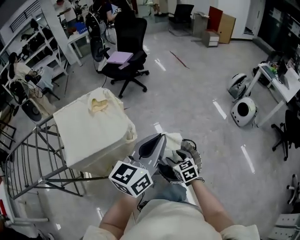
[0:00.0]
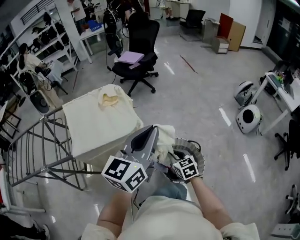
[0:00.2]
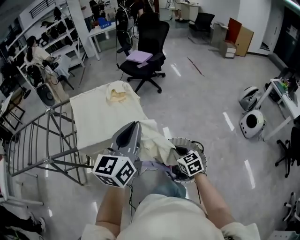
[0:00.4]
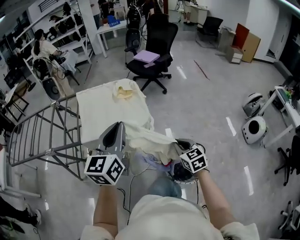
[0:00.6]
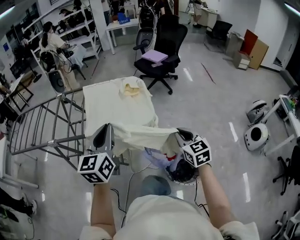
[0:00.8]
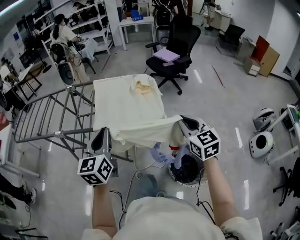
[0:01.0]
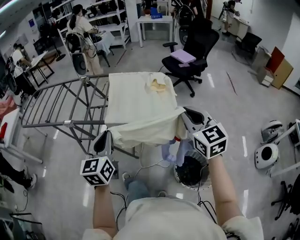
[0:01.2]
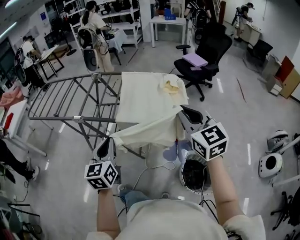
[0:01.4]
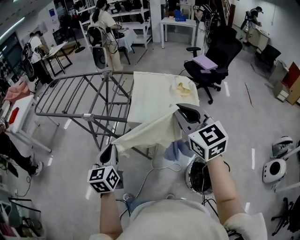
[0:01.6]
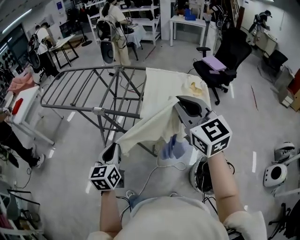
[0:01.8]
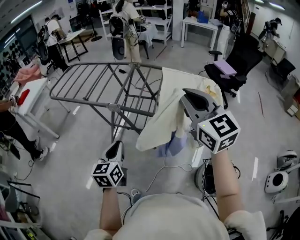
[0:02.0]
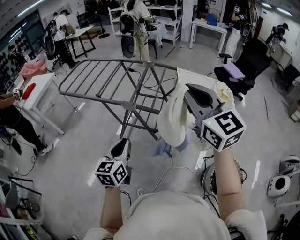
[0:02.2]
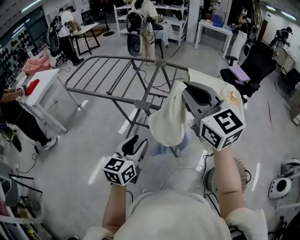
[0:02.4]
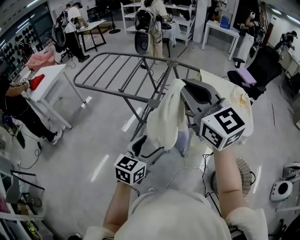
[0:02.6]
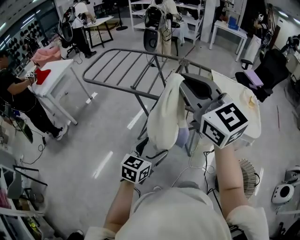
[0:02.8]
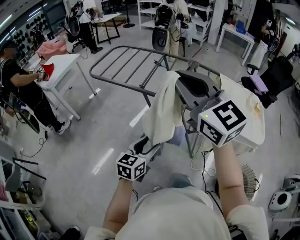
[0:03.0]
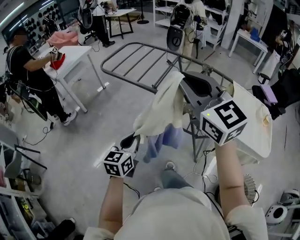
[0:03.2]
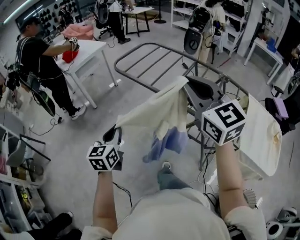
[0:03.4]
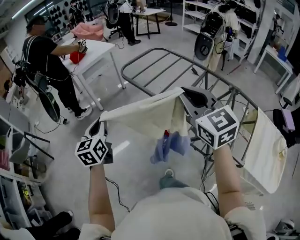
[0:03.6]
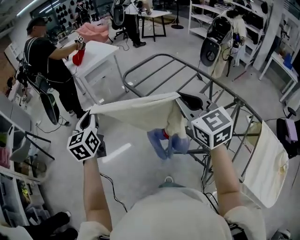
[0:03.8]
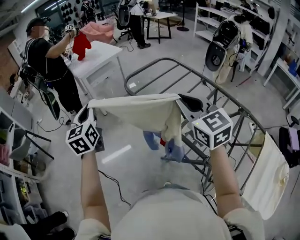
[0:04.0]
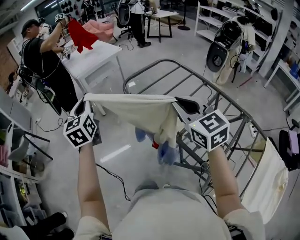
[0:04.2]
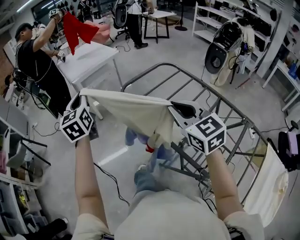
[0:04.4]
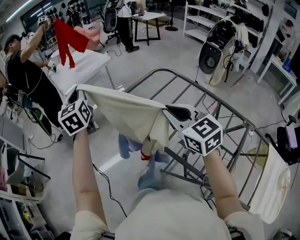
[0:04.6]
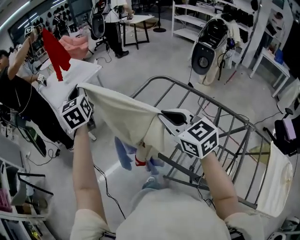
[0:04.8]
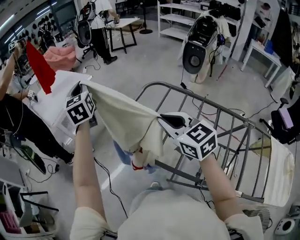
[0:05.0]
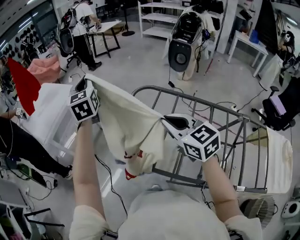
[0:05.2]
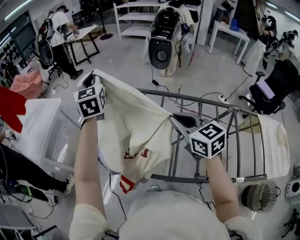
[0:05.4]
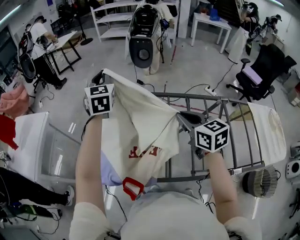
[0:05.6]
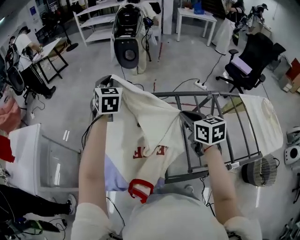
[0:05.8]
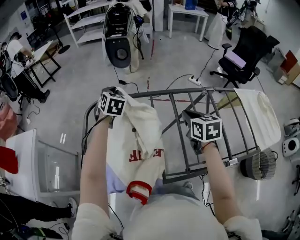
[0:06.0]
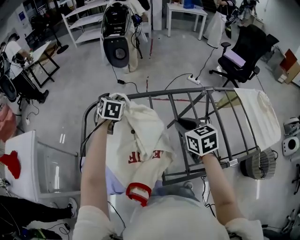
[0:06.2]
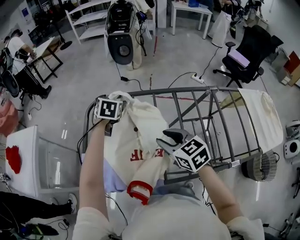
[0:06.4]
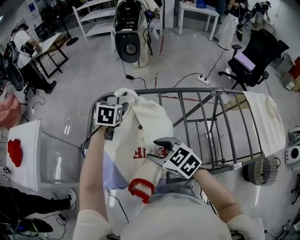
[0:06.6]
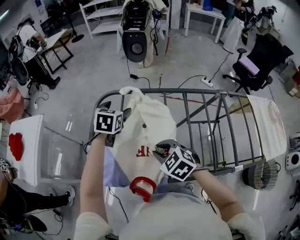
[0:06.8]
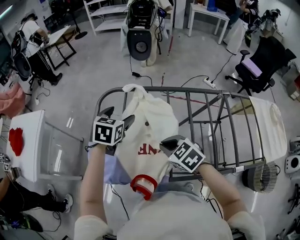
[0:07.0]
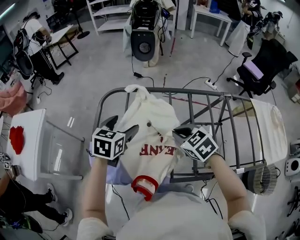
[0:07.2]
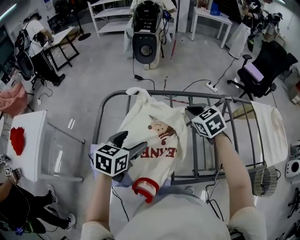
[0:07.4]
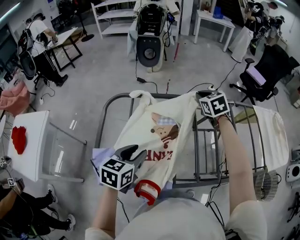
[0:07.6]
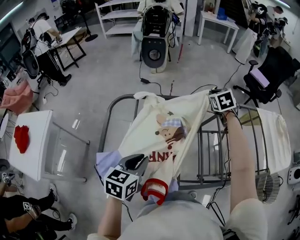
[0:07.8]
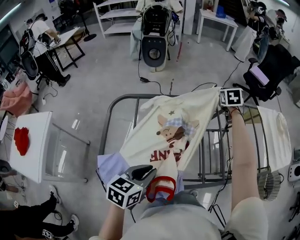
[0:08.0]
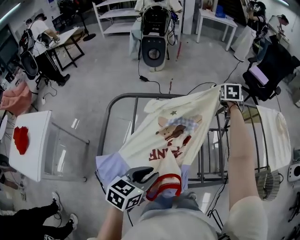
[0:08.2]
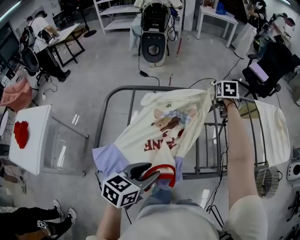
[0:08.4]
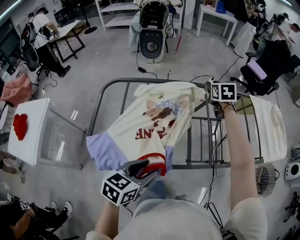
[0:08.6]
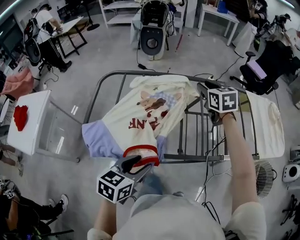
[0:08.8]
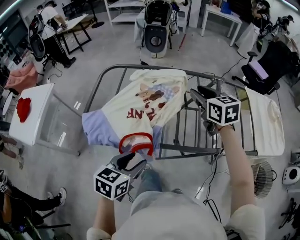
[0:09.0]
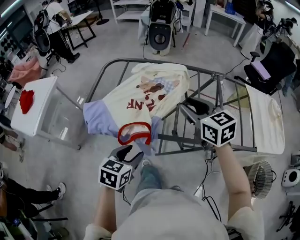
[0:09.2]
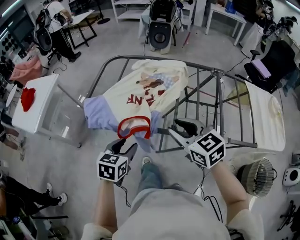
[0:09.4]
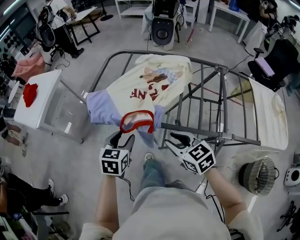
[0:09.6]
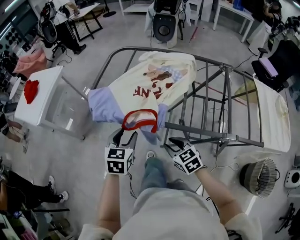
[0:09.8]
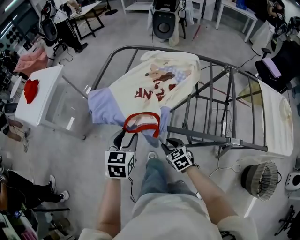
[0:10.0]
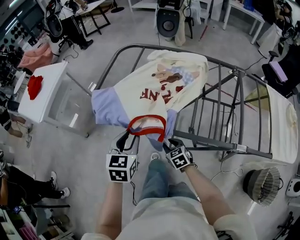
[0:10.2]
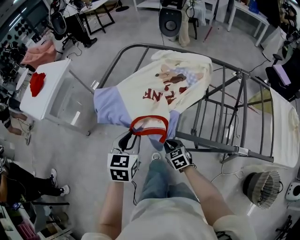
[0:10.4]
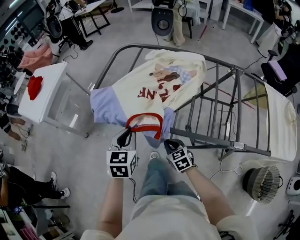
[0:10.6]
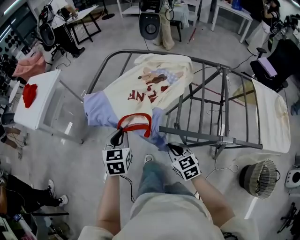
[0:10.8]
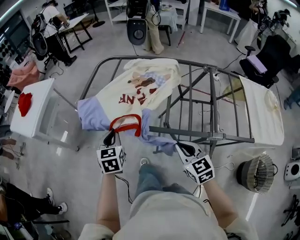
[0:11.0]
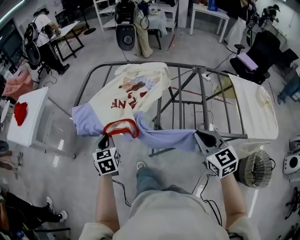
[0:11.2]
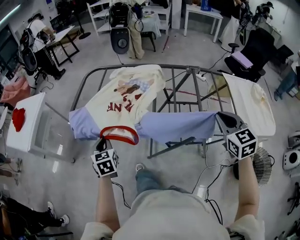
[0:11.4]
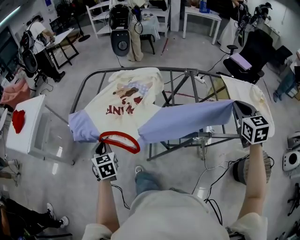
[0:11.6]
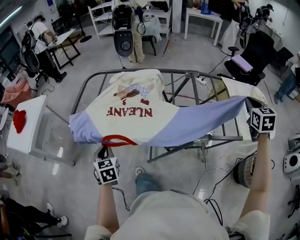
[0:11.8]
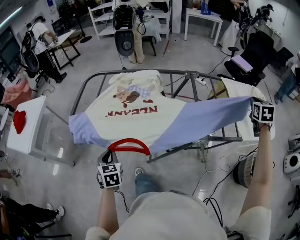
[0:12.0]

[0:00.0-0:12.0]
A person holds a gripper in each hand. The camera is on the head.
0:00.0 to 0:01.6: The right gripper goes about 35 cm upward, points its fingers some 30 degrees further upward, and closes, while the left gripper changes place by some 50 cm, and swivels some 70 degrees.
0:01.6 to 0:03.0: The right gripper shifts roughly 50 cm to the left, and changes its angle by roughly 30 degrees. The left gripper travels to the left by roughly 30 cm, and opens its fingers.
0:03.0 to 0:04.4: The left gripper changes place by some 60 cm, turns by roughly 70 degrees, and closes. Meanwhile the right gripper ends up roughly 40 cm from where it was, and rotates about 30 degrees.
0:04.4 to 0:06.0: The right gripper changes place by some 30 cm, and swivels some 80 degrees; the left gripper changes place by approximately 60 cm, and swivels approximately 80 degrees.
0:06.0 to 0:07.6: The right gripper moves roughly 5 cm downward and comes back, swivels approximately 30 degrees, and opens, then closes once more, while the left gripper changes place by about 25 cm, swivels roughly 40 degrees, and opens.
0:07.6 to 0:09.0: The left gripper shifts by roughly 25 cm; the right gripper moves about 20 cm, rotates approximately 20 degrees, and opens up.
0:09.0 to 0:10.4: The right gripper goes approximately 35 cm downward, and rotates about 30 degrees. Meanwhile the left gripper changes place by some 10 cm, and changes its angle by roughly 30 degrees.
0:10.4 to 0:12.0: The right gripper moves approximately 70 cm, and turns by about 60 degrees.

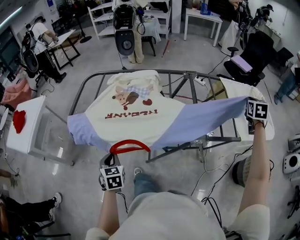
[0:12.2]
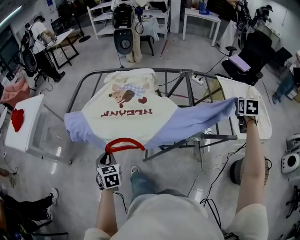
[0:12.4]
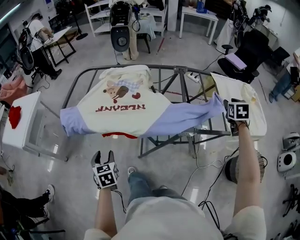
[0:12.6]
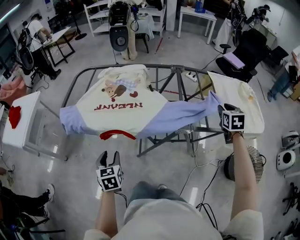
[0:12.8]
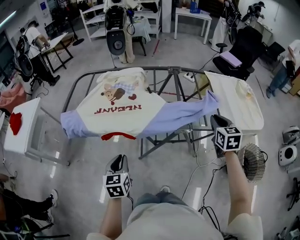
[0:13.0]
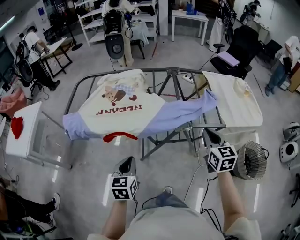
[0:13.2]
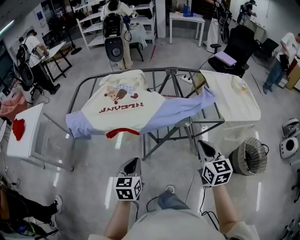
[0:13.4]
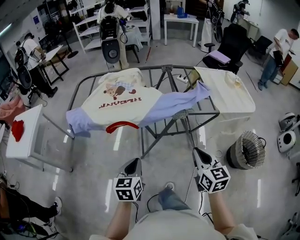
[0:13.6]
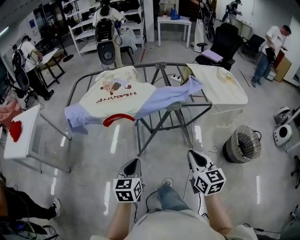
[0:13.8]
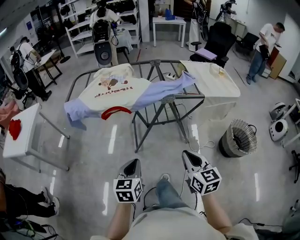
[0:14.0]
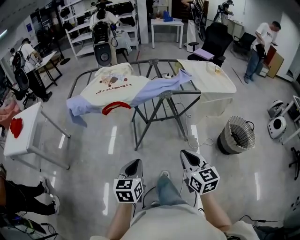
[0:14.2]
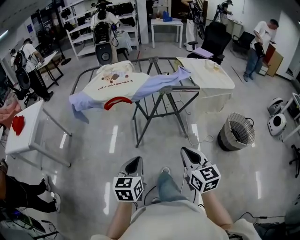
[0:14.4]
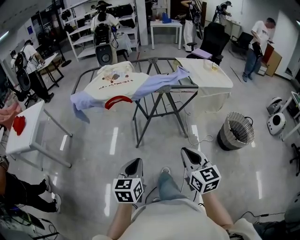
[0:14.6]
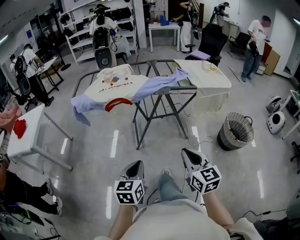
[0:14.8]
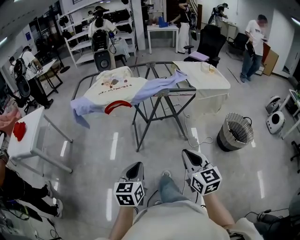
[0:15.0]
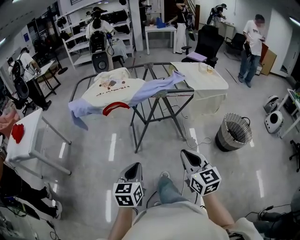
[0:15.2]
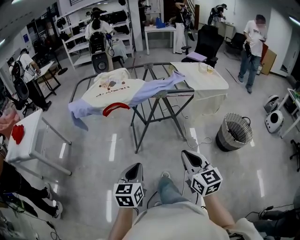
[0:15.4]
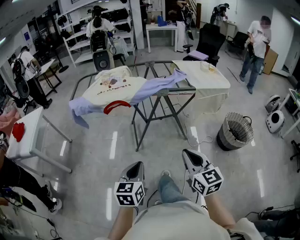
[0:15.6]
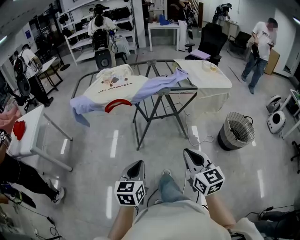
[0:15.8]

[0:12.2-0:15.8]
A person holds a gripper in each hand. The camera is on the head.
0:12.2 to 0:14.0: The right gripper travels backward and to the left by about 60 cm, turns by roughly 40 degrees, and opens and closes again; the left gripper shifts some 35 cm backward and to the right, rotates some 30 degrees, and opens, then closes once more.
0:14.0 to 0:15.8: The grippers both shift backward by roughly 10 cm.

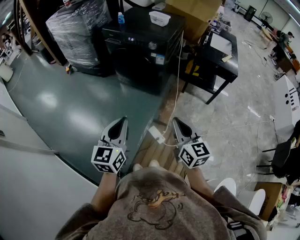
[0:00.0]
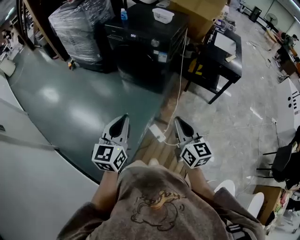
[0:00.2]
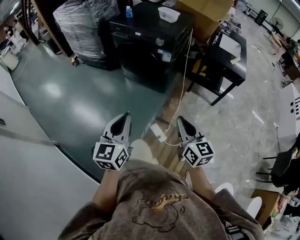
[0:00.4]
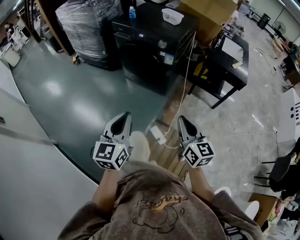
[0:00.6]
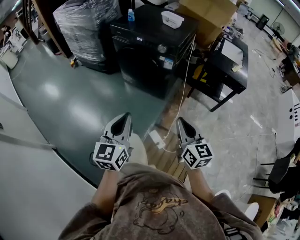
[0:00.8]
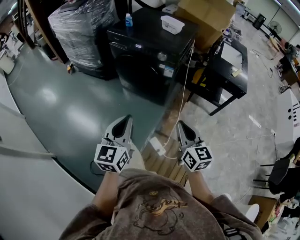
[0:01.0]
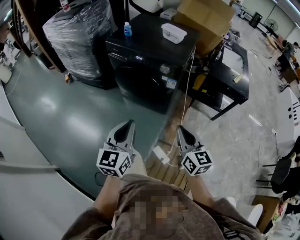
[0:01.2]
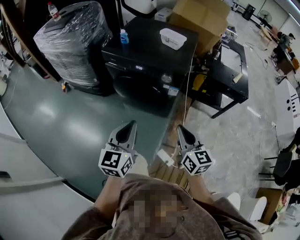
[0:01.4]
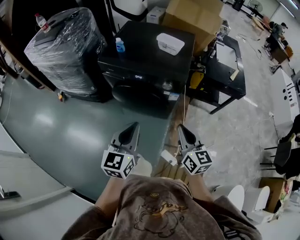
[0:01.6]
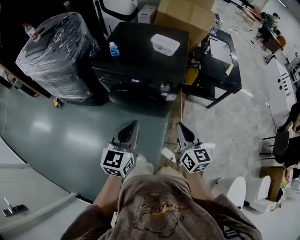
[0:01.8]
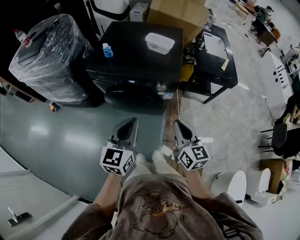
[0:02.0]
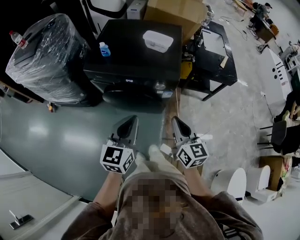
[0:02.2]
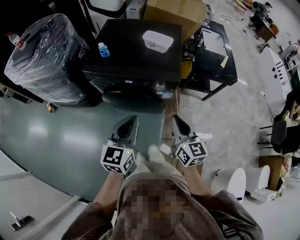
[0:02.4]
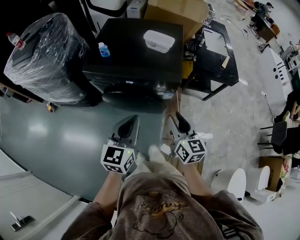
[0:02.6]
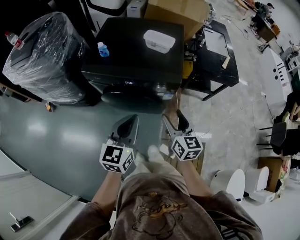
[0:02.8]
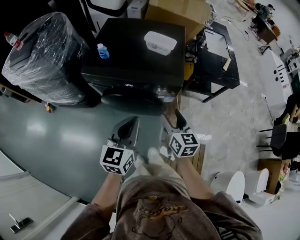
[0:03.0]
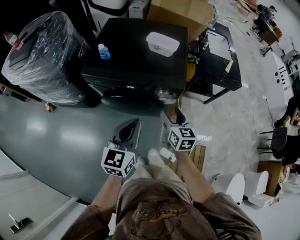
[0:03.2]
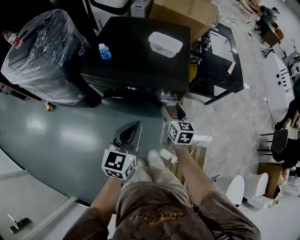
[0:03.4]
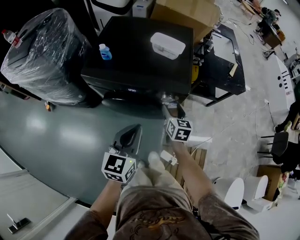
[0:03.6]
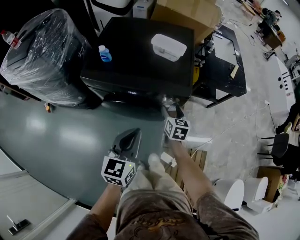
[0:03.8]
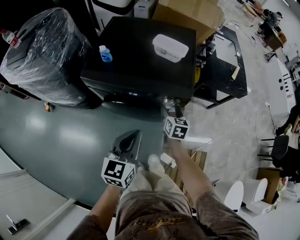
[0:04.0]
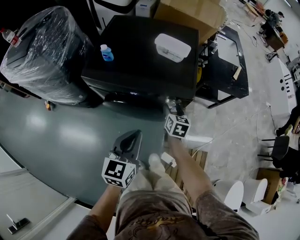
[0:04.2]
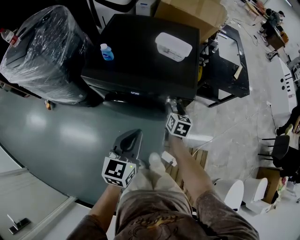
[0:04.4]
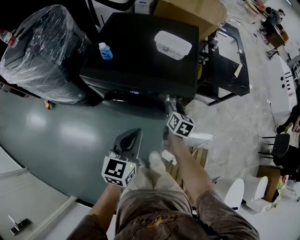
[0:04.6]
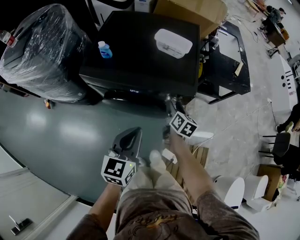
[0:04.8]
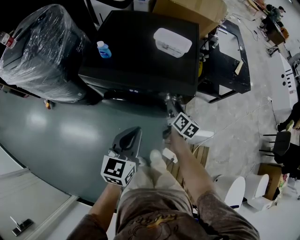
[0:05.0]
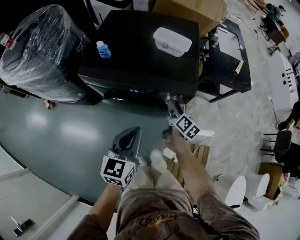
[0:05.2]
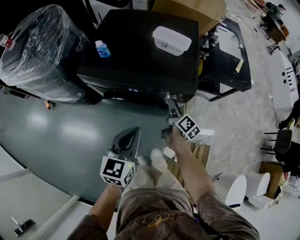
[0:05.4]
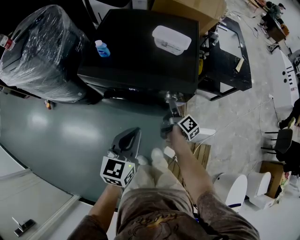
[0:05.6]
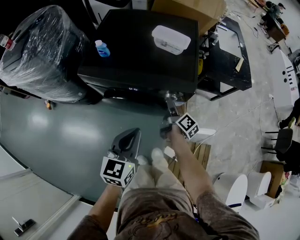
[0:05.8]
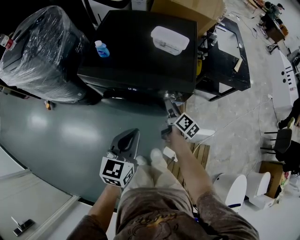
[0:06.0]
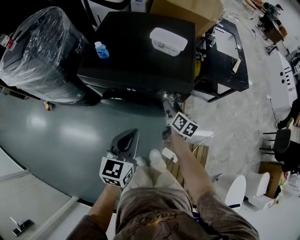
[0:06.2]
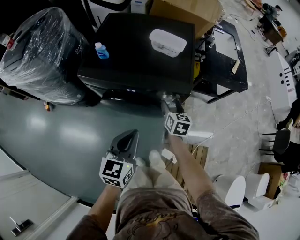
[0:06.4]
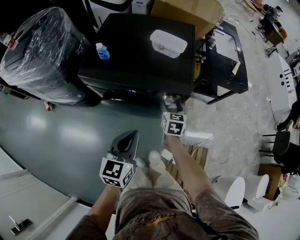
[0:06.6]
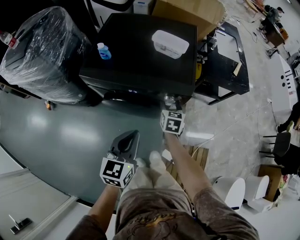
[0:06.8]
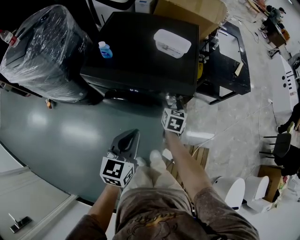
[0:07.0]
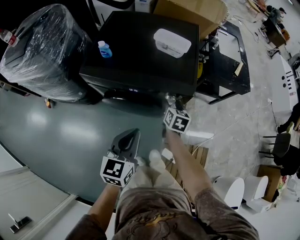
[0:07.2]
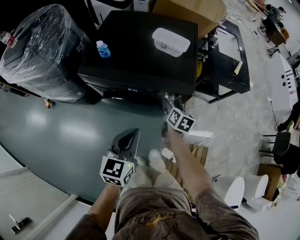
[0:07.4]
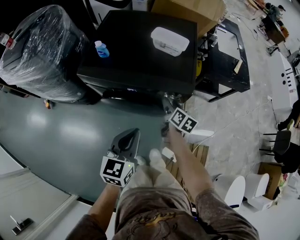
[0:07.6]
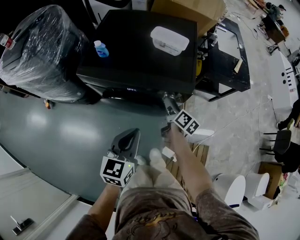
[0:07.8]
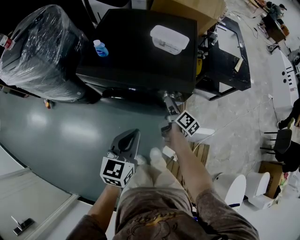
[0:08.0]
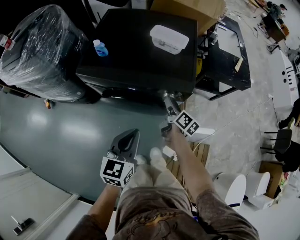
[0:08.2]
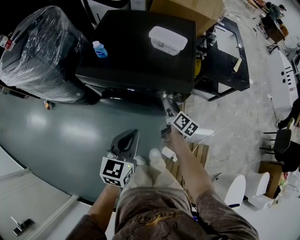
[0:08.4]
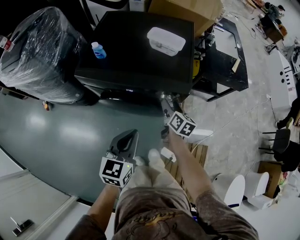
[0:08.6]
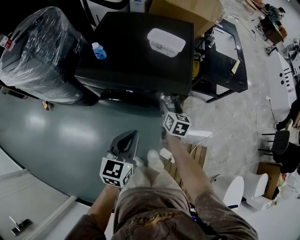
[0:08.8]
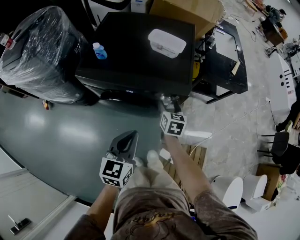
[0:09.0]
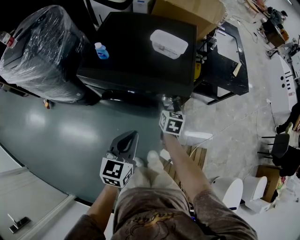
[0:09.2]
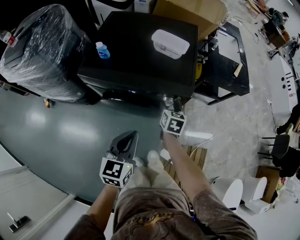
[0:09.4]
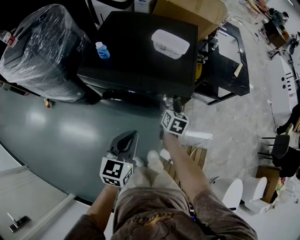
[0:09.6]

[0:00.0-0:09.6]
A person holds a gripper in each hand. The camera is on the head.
0:00.0 to 0:01.6: The two grippers go about 30 cm forward.
0:01.6 to 0:03.2: The left gripper travels forward by some 10 cm. The right gripper travels forward and downward by approximately 20 cm, and opens up.
0:03.2 to 0:04.8: The left gripper shifts by roughly 5 cm; the right gripper heads downward and forward, covering roughly 15 cm, and swivels approximately 30 degrees.
0:06.4 to 0:08.0: The right gripper rotates around the line of its fingers by approximately 40 degrees, clockwise from behind.
0:08.0 to 0:09.6: The right gripper swivels about 40 degrees.
